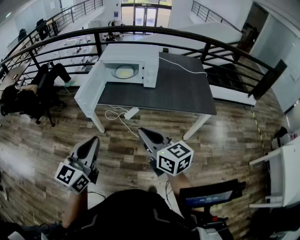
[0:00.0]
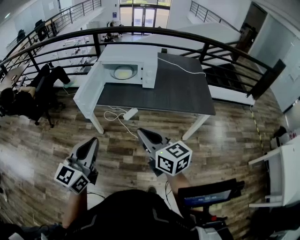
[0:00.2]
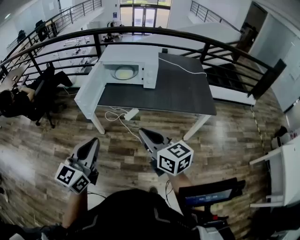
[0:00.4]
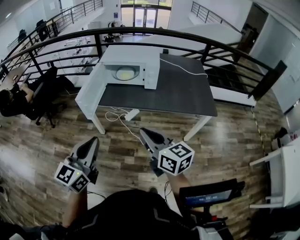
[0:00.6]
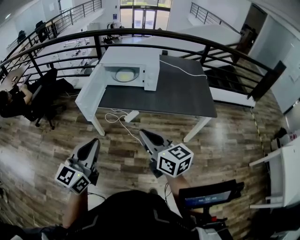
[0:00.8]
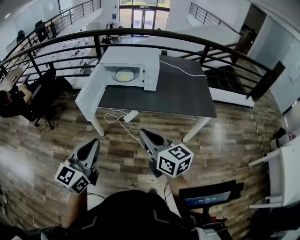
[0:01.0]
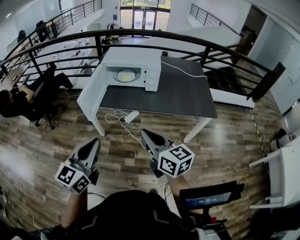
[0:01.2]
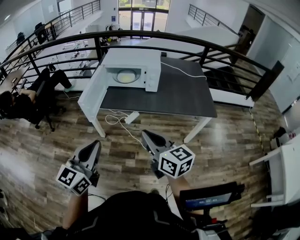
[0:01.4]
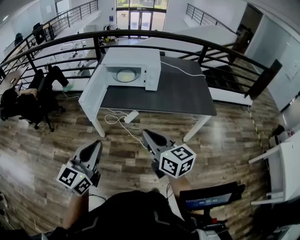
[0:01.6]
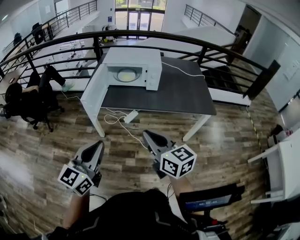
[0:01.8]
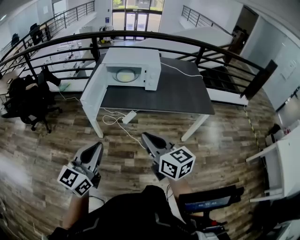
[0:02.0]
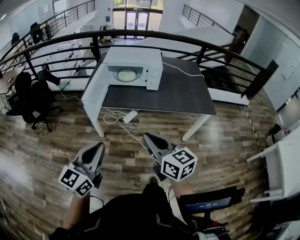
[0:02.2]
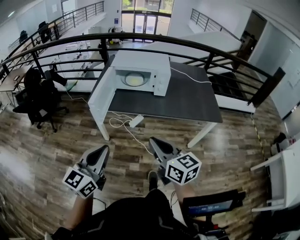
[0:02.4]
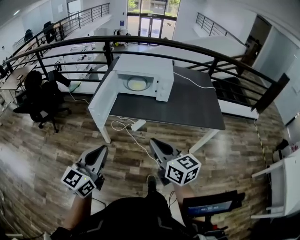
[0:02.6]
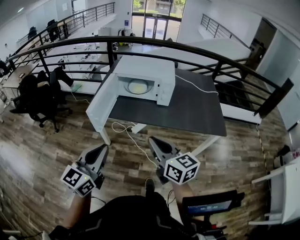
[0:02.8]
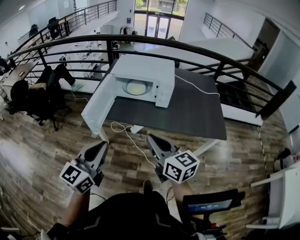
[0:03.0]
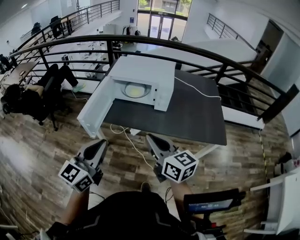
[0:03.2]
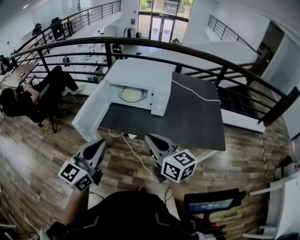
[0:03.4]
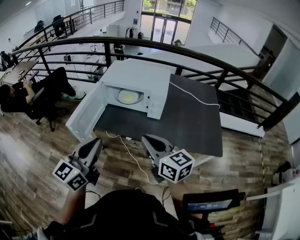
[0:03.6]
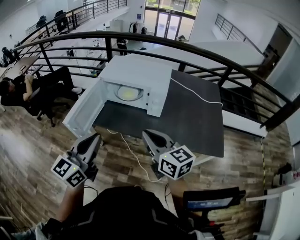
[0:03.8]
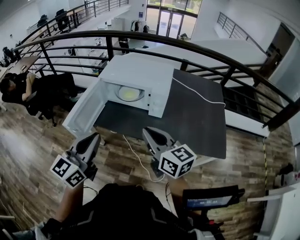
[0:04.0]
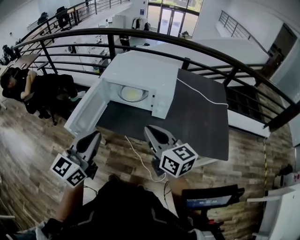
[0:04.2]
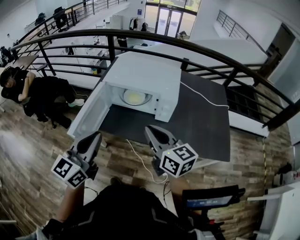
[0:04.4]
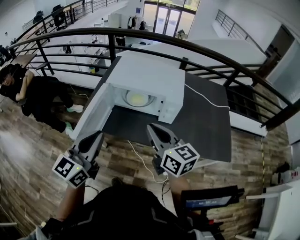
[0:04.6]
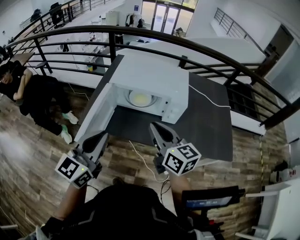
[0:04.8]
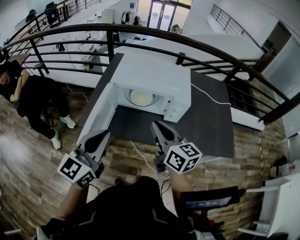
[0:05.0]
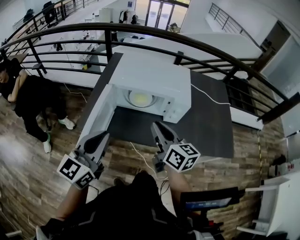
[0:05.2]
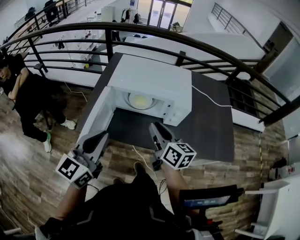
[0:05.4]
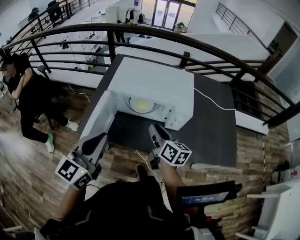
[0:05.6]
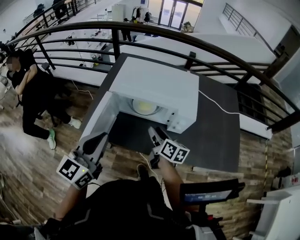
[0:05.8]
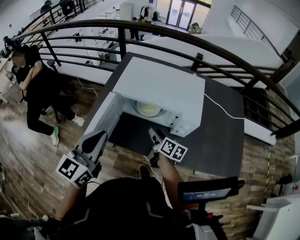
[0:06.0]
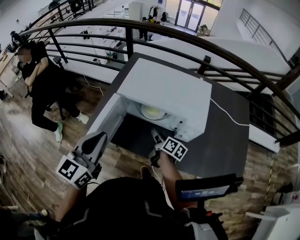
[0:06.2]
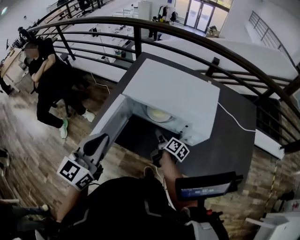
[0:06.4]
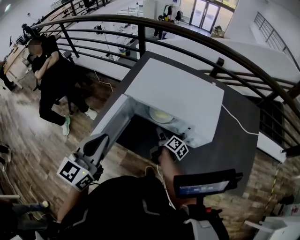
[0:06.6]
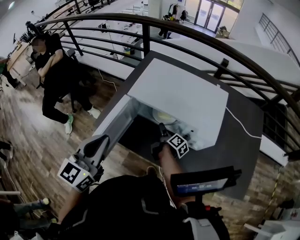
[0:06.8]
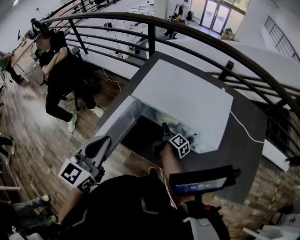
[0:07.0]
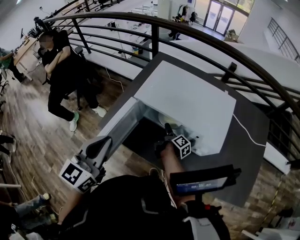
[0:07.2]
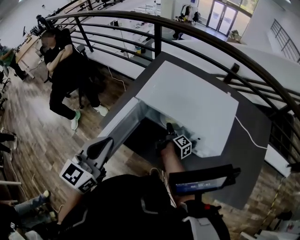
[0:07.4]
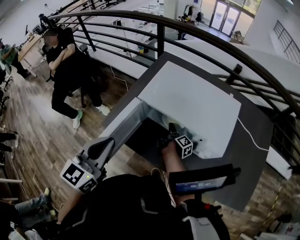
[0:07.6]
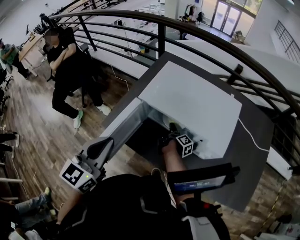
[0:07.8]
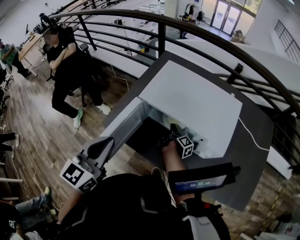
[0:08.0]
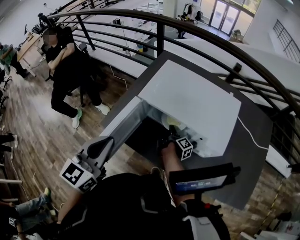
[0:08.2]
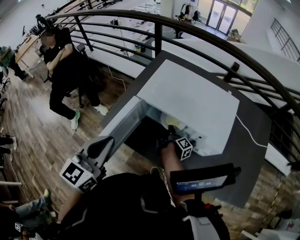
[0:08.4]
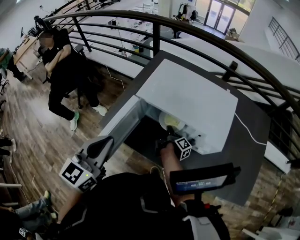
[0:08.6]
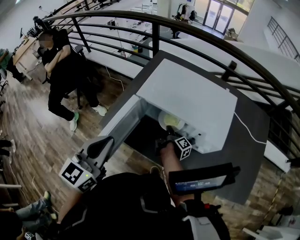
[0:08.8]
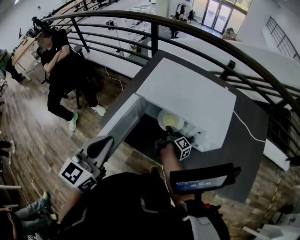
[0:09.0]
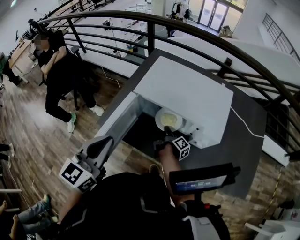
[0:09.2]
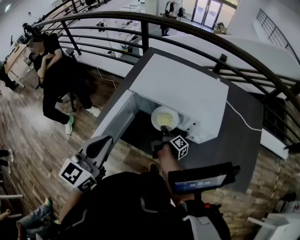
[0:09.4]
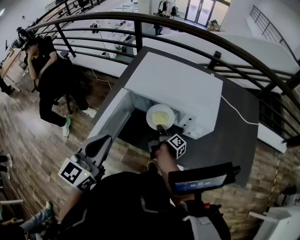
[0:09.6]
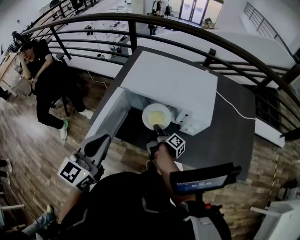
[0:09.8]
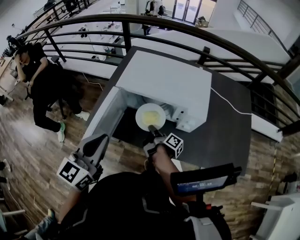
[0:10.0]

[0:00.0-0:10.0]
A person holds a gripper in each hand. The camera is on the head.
0:00.0 to 0:01.4: The grippers move only a little.
0:01.4 to 0:02.8: Both grippers travel together forward, about 5 cm.
0:02.8 to 0:04.2: The grippers both shift forward and to the right by roughly 25 cm.
0:04.2 to 0:05.8: The left gripper shifts roughly 20 cm forward and to the left. Meanwhile the right gripper heads forward and downward, covering approximately 25 cm, turns by approximately 30 degrees, and opens up.
0:05.8 to 0:07.2: The right gripper goes approximately 20 cm downward and forward, rolls clockwise, seen from behind, by approximately 40 degrees, and opens; the left gripper ends up roughly 5 cm from where it was.
0:07.2 to 0:08.6: The right gripper closes.
0:08.6 to 0:10.0: The right gripper travels backward and upward by approximately 15 cm. Meanwhile the left gripper ends up some 5 cm from where it was.

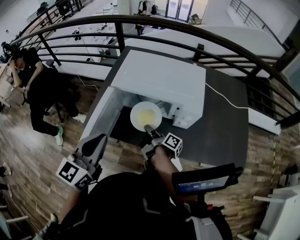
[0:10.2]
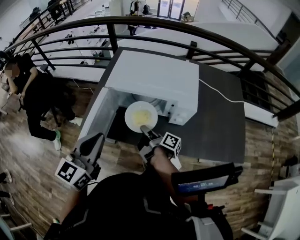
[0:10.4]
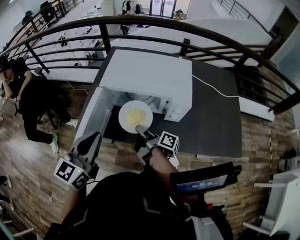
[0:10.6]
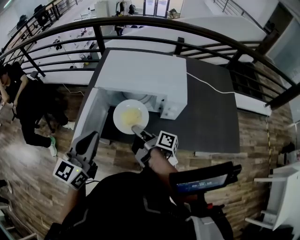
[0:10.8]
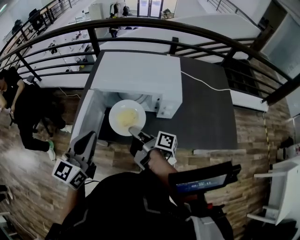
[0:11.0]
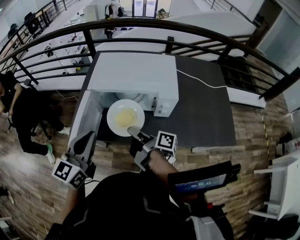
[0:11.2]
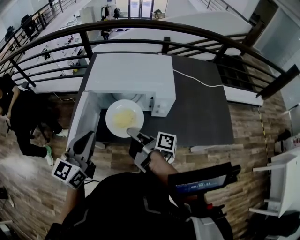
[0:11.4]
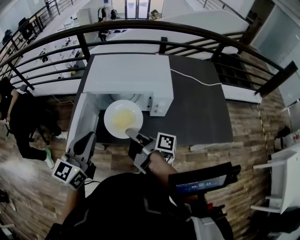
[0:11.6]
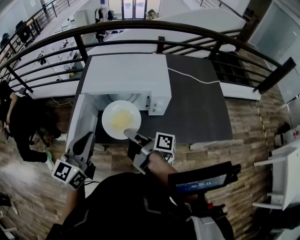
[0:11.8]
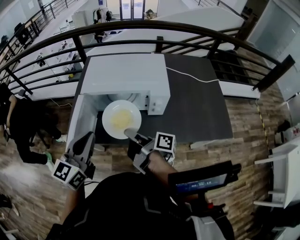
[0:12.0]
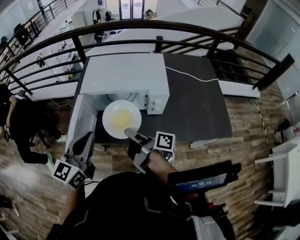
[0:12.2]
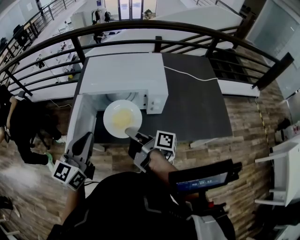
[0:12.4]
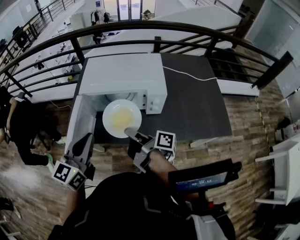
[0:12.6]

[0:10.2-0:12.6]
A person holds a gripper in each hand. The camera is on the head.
0:10.2 to 0:11.4: The right gripper heads upward and backward, covering approximately 15 cm.
0:11.4 to 0:12.6: The grippers stay close to where they were, moving slightly.

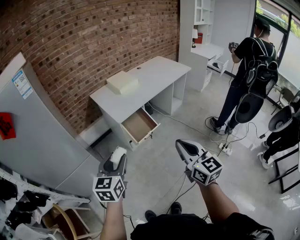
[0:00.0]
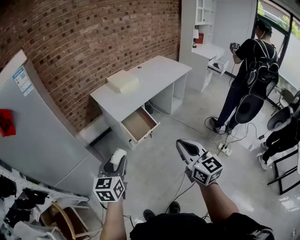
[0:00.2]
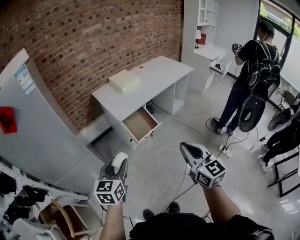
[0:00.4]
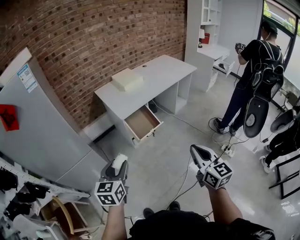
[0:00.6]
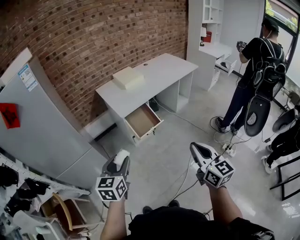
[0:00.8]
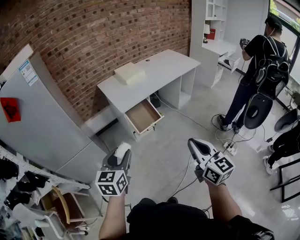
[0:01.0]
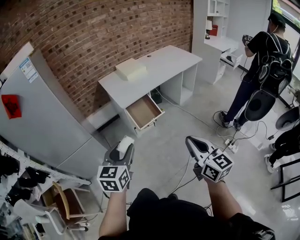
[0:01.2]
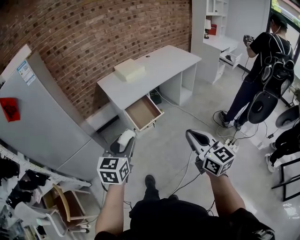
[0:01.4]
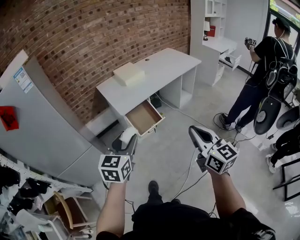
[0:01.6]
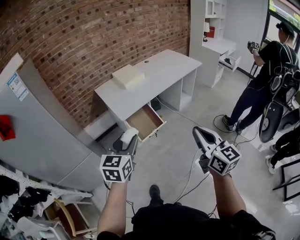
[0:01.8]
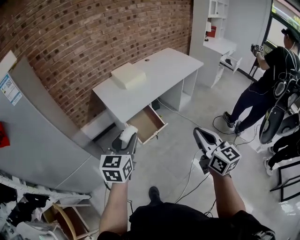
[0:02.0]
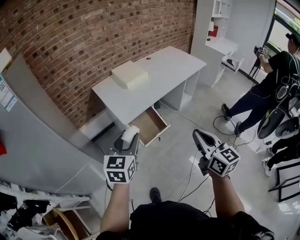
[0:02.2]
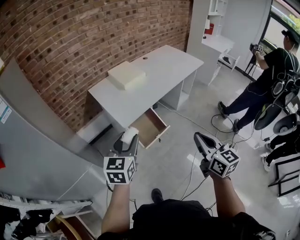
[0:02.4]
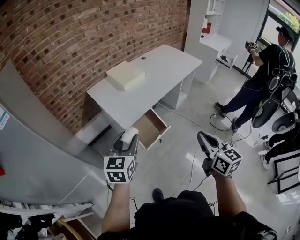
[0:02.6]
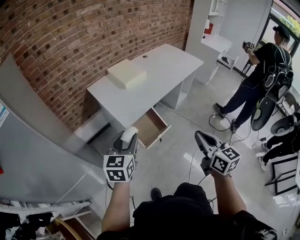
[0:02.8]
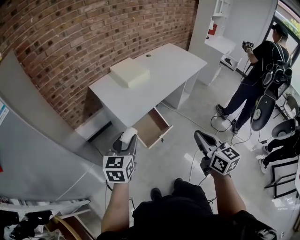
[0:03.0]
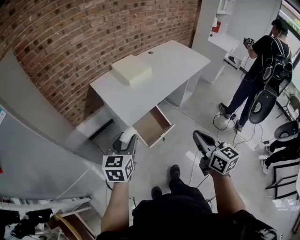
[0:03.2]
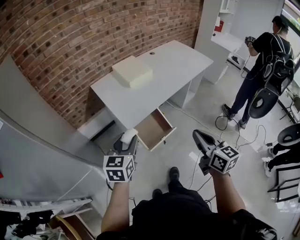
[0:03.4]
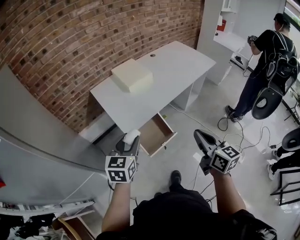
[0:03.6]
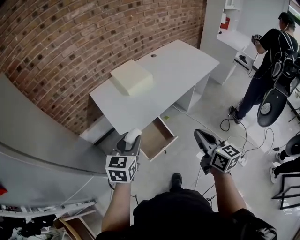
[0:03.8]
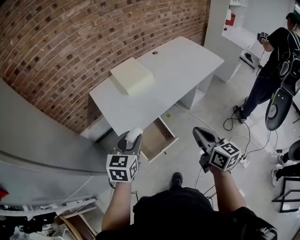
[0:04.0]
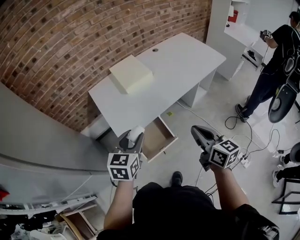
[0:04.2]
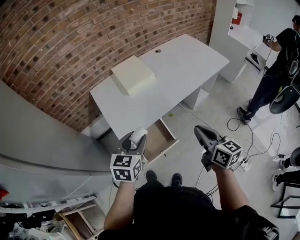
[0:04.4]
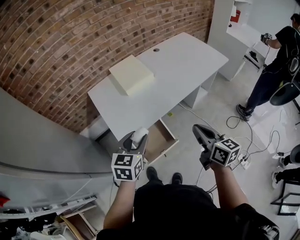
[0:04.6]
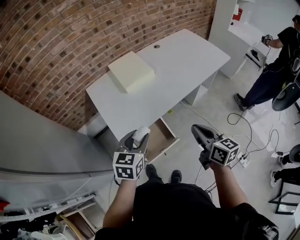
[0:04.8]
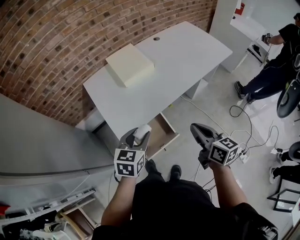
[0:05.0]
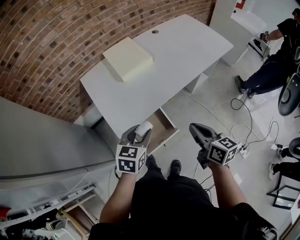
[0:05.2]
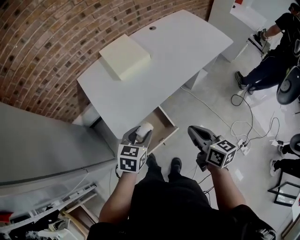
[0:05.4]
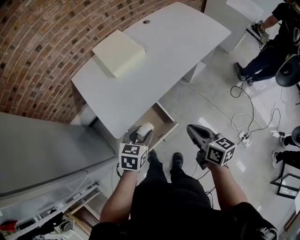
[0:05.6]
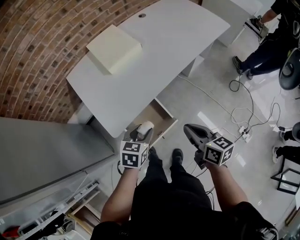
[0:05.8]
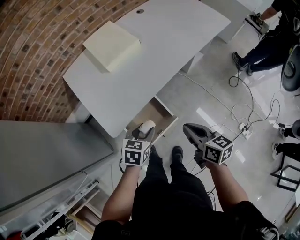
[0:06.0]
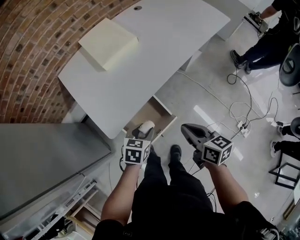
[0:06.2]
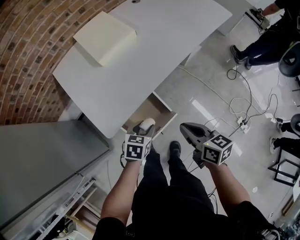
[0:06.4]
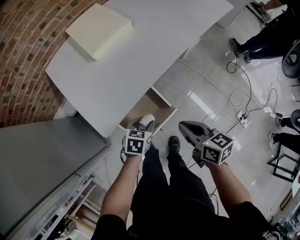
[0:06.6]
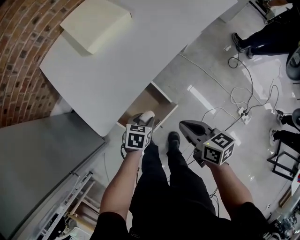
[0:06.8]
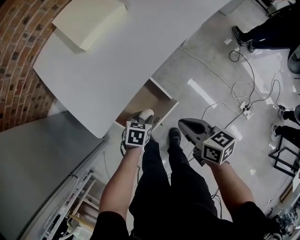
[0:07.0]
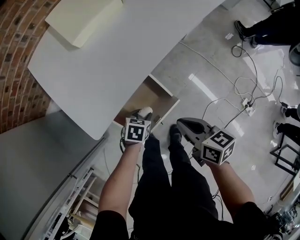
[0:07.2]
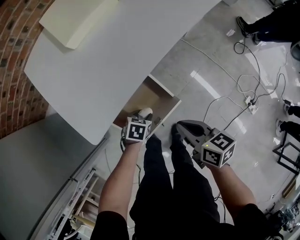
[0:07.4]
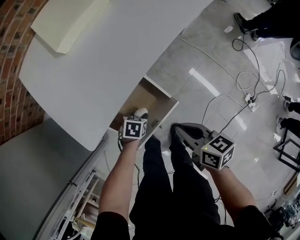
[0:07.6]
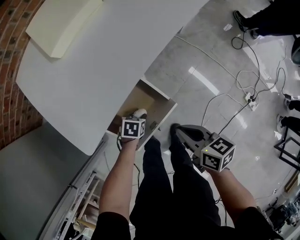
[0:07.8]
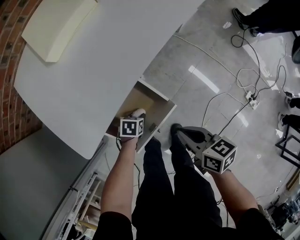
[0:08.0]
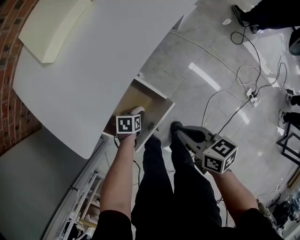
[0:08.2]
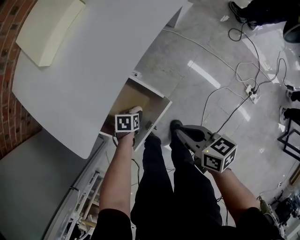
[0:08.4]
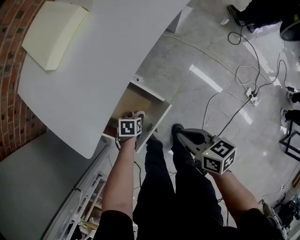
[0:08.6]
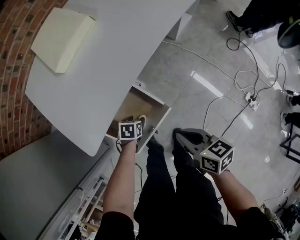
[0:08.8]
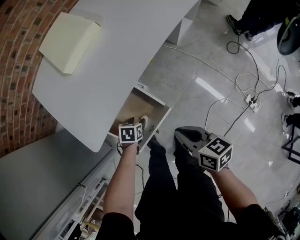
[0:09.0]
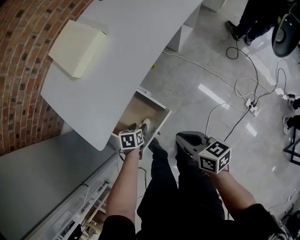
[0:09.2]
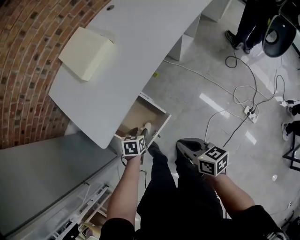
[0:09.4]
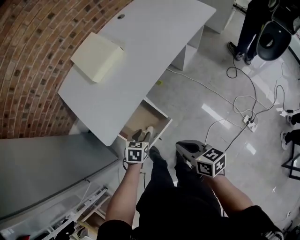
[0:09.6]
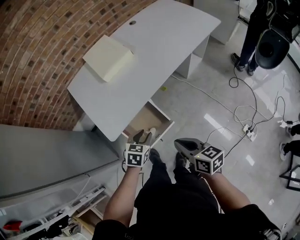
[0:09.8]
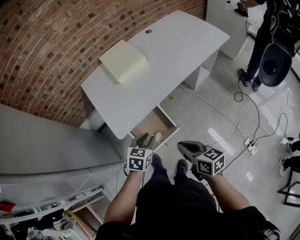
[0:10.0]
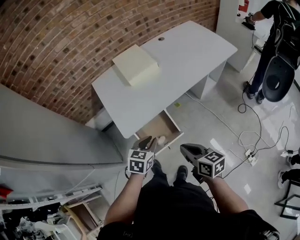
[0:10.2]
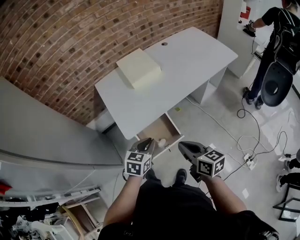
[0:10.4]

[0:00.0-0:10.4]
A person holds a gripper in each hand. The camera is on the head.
0:00.0 to 0:01.4: Both grippers move to the right, some 10 cm.
0:01.4 to 0:03.0: The two grippers go approximately 25 cm forward and to the left.
0:03.0 to 0:04.4: Both grippers move forward and to the right, roughly 25 cm.
0:04.4 to 0:06.0: The grippers both shift downward by roughly 20 cm. The left gripper swivels roughly 30 degrees.
0:06.0 to 0:07.4: The left gripper heads downward, covering roughly 30 cm, and turns by about 20 degrees; the right gripper heads downward, covering approximately 15 cm.
0:07.4 to 0:09.0: The left gripper goes downward and returns, some 10 cm each way, while the right gripper moves about 5 cm.
0:09.0 to 0:10.4: The left gripper heads upward, covering some 35 cm, points its fingers some 30 degrees further upward, and closes up. The right gripper travels upward by some 20 cm.

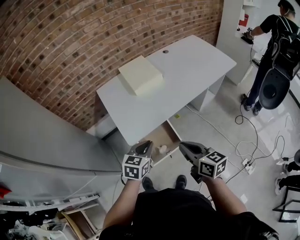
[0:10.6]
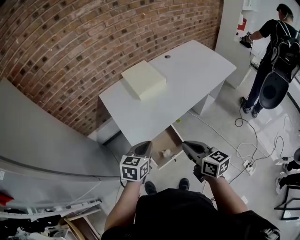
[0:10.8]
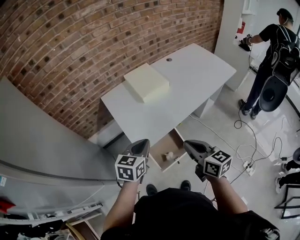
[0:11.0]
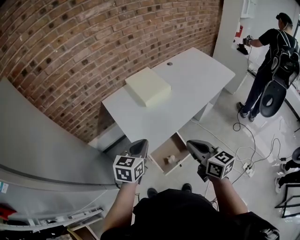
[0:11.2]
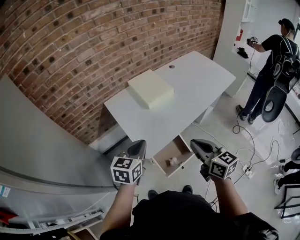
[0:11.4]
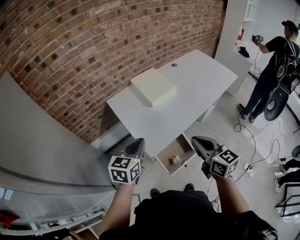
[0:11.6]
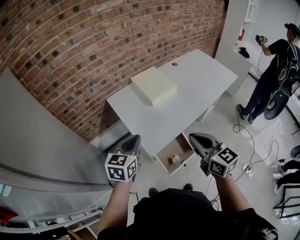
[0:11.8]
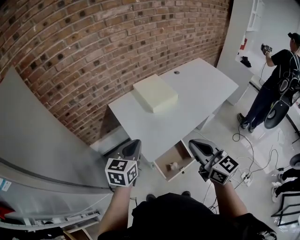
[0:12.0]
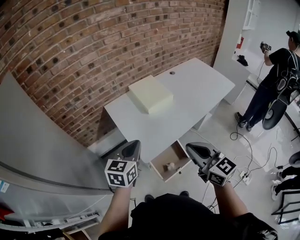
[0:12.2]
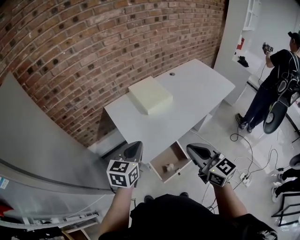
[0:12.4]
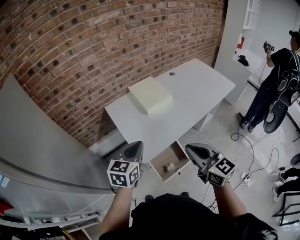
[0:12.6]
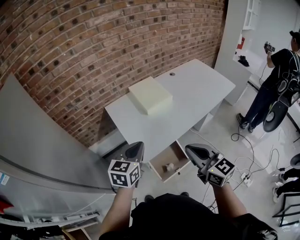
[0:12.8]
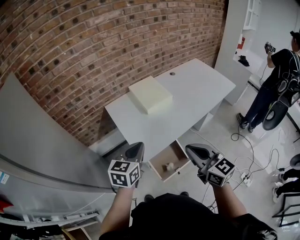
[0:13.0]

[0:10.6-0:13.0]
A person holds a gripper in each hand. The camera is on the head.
0:10.6 to 0:11.8: The right gripper moves to the left, upward and forward, approximately 15 cm, and swivels roughly 20 degrees. Meanwhile the left gripper shifts some 20 cm to the left and upward.
0:11.8 to 0:13.0: The left gripper moves to the right, approximately 5 cm.
